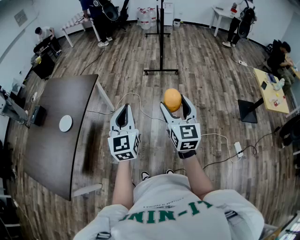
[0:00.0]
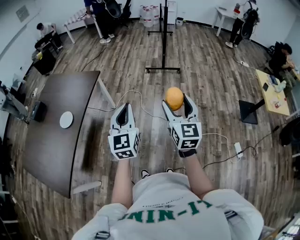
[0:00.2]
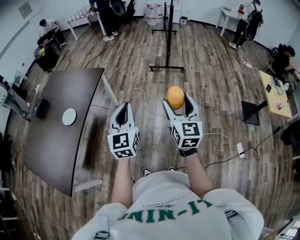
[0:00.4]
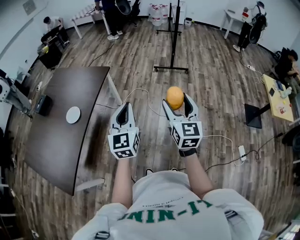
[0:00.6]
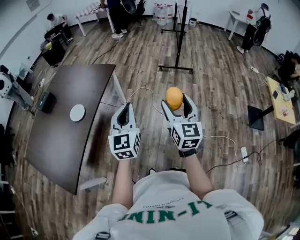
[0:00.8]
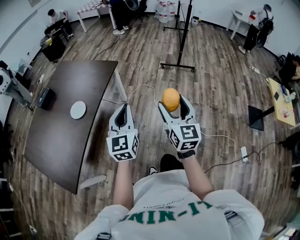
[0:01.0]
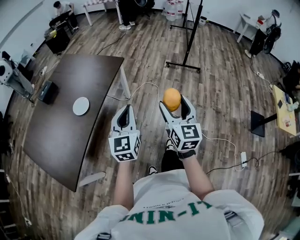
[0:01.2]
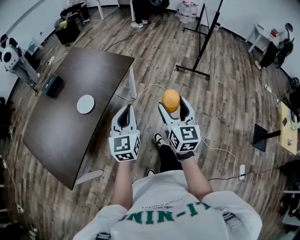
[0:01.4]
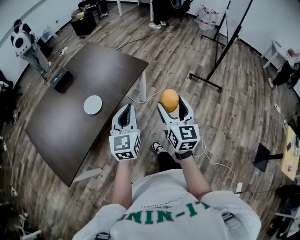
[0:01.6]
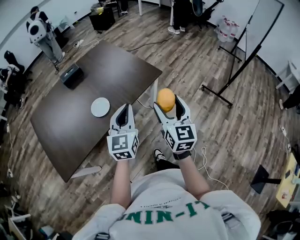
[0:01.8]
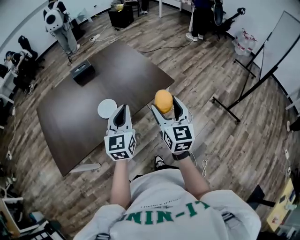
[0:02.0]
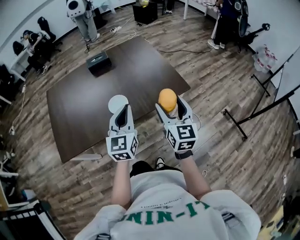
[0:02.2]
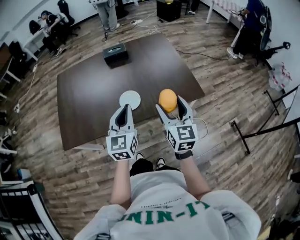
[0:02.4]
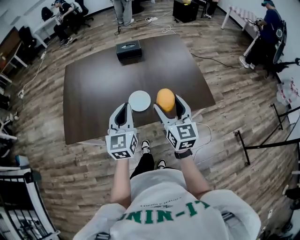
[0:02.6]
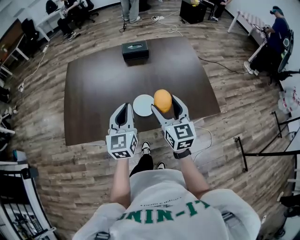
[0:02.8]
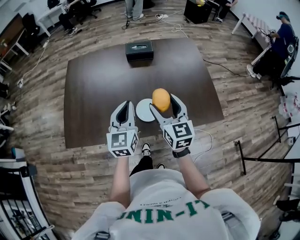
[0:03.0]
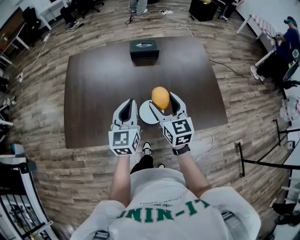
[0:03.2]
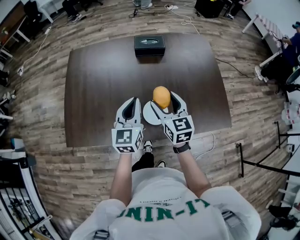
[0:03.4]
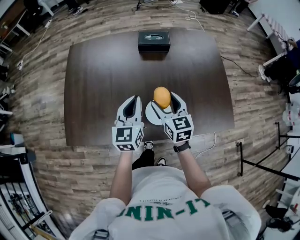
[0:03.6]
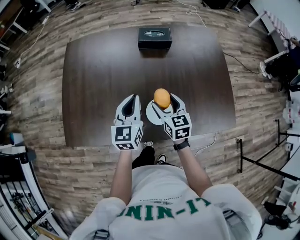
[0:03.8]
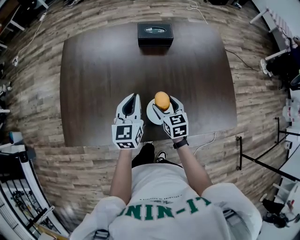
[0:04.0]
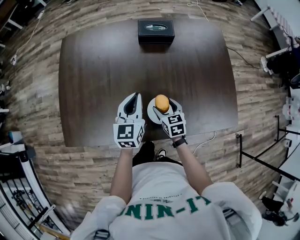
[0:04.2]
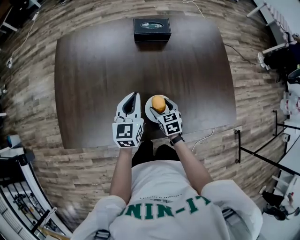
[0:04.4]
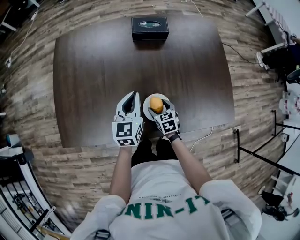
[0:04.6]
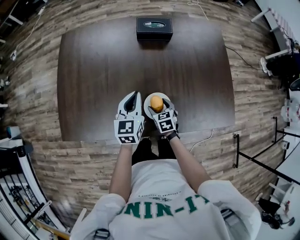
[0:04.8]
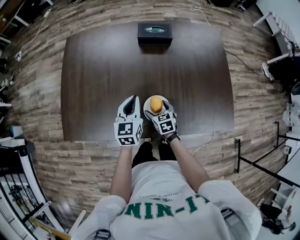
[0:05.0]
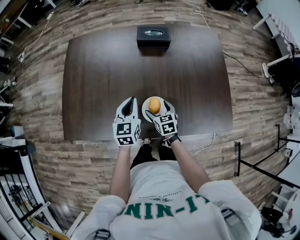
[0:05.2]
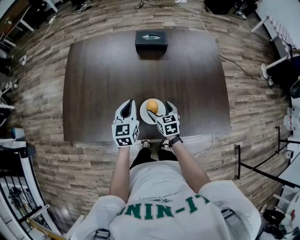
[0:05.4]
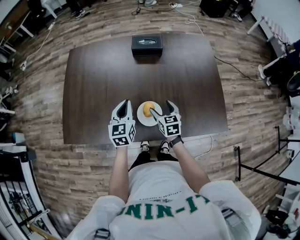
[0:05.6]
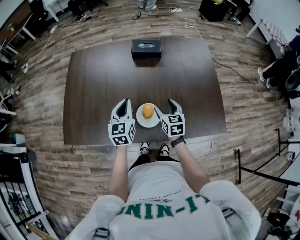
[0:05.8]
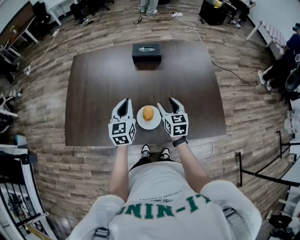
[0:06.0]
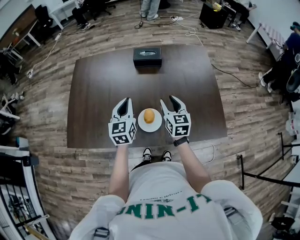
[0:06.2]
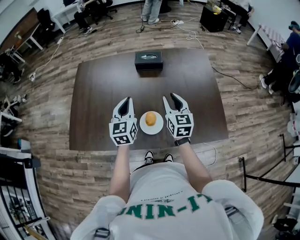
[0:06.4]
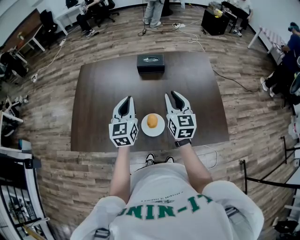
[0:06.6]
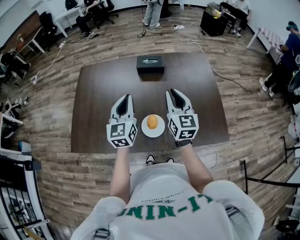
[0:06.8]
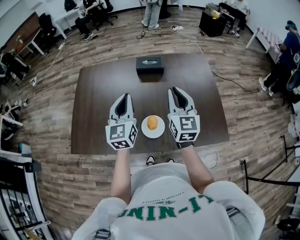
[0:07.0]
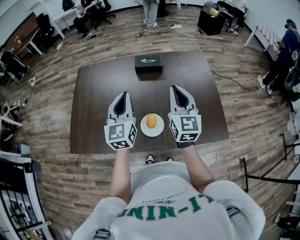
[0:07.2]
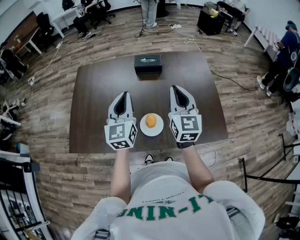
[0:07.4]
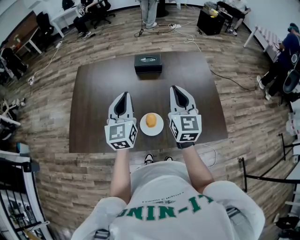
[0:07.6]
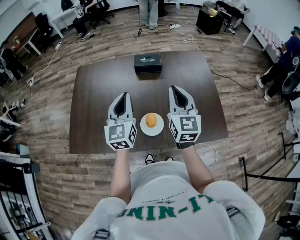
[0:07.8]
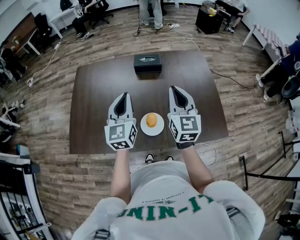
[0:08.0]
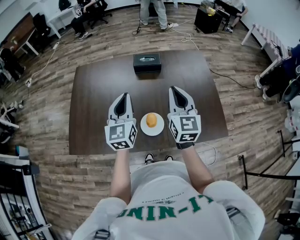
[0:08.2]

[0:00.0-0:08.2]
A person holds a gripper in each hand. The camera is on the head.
0:00.0 to 0:01.6: Both grippers travel together to the left and forward, about 35 cm. The left gripper changes its angle by about 20 degrees. Meanwhile the right gripper turns by about 30 degrees.
0:01.6 to 0:03.2: Both grippers are carried about 50 cm. The right gripper changes its angle by about 60 degrees; the left gripper turns by roughly 50 degrees.
0:03.2 to 0:05.0: The right gripper heads downward, covering approximately 30 cm, and angles its fingers downward, by about 30 degrees, while the left gripper travels downward and forward by some 15 cm.
0:05.0 to 0:06.6: The left gripper heads upward, covering about 15 cm; the right gripper heads upward, covering approximately 30 cm, points its fingers some 40 degrees further upward, and closes its fingers.
0:06.6 to 0:08.2: The right gripper is displaced upward by about 5 cm.

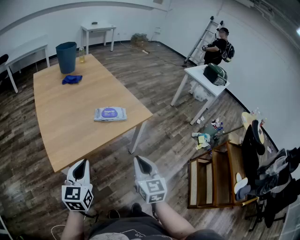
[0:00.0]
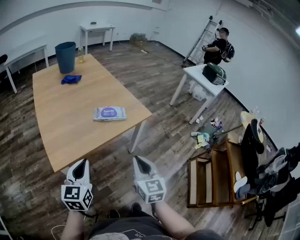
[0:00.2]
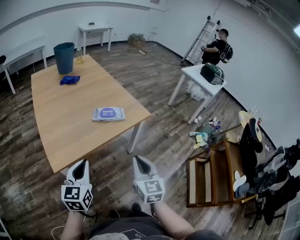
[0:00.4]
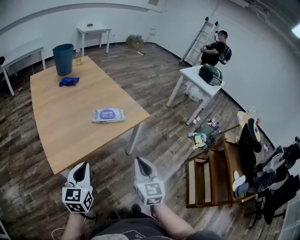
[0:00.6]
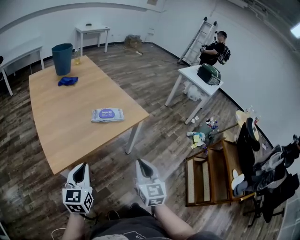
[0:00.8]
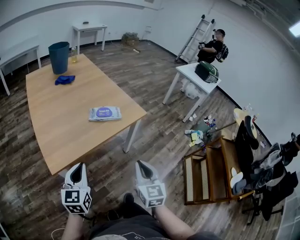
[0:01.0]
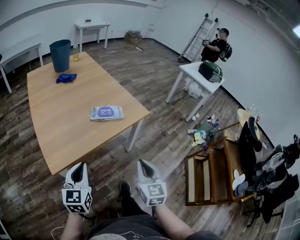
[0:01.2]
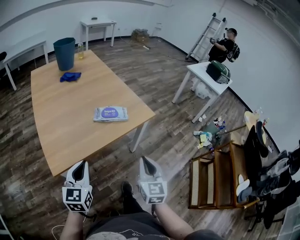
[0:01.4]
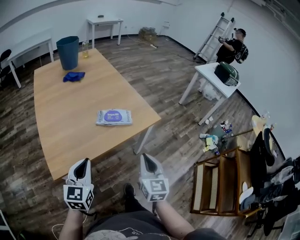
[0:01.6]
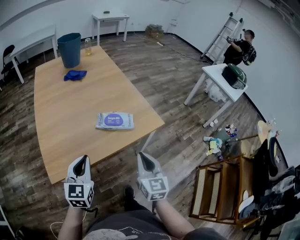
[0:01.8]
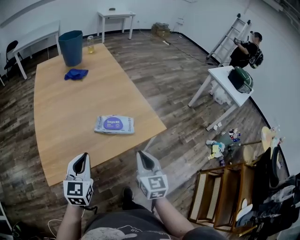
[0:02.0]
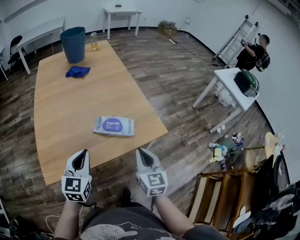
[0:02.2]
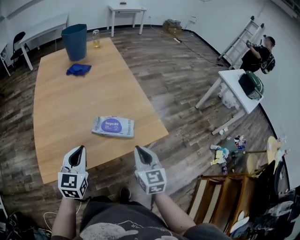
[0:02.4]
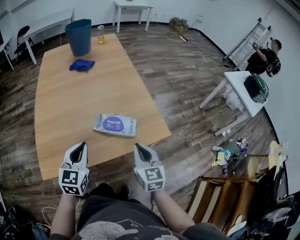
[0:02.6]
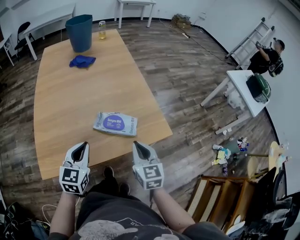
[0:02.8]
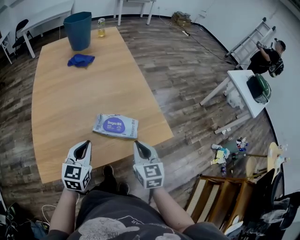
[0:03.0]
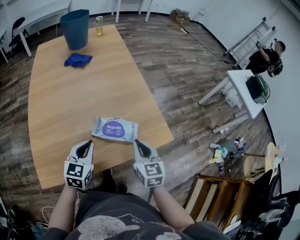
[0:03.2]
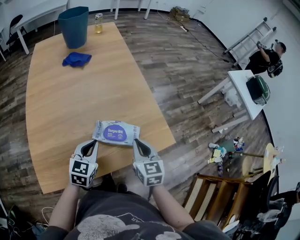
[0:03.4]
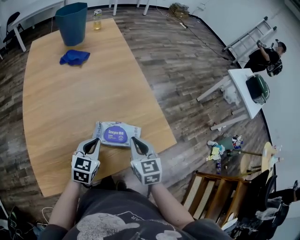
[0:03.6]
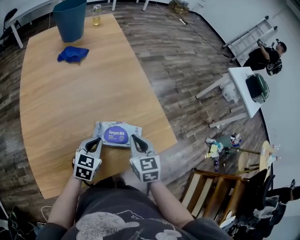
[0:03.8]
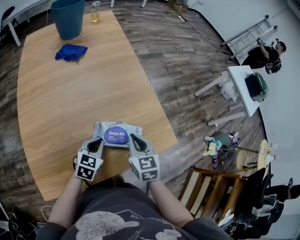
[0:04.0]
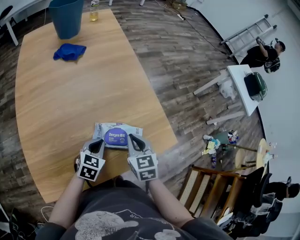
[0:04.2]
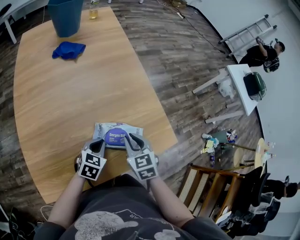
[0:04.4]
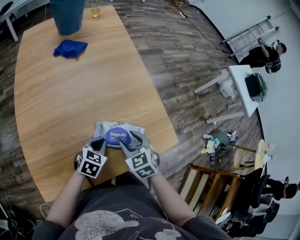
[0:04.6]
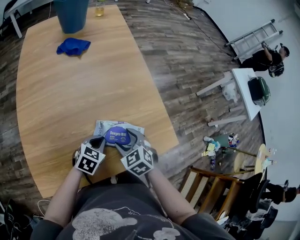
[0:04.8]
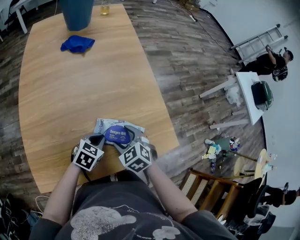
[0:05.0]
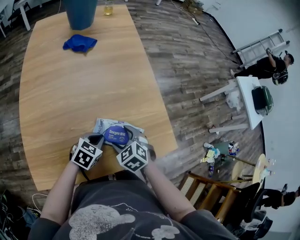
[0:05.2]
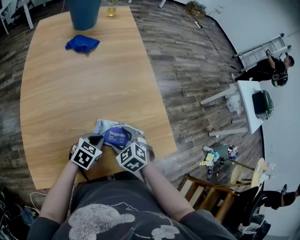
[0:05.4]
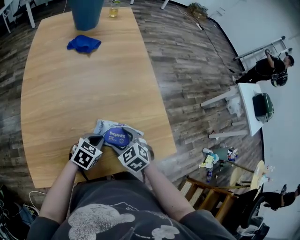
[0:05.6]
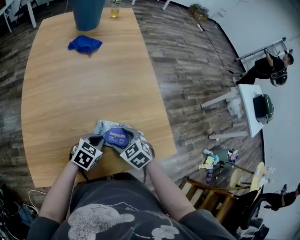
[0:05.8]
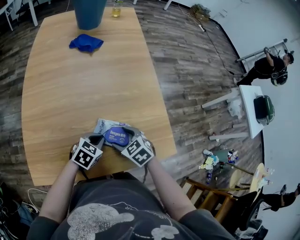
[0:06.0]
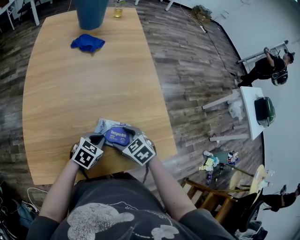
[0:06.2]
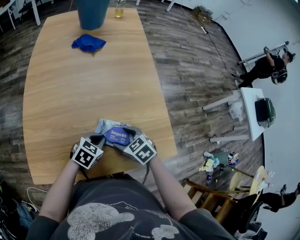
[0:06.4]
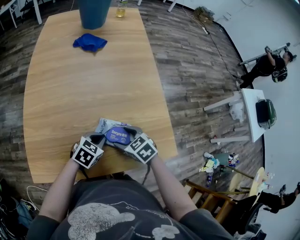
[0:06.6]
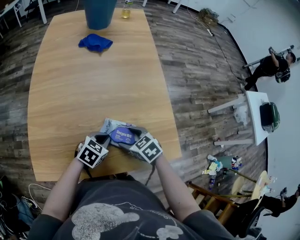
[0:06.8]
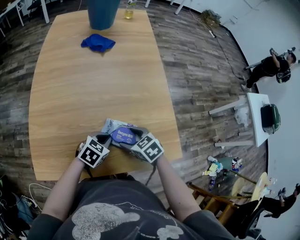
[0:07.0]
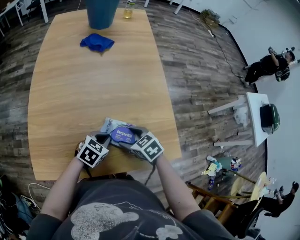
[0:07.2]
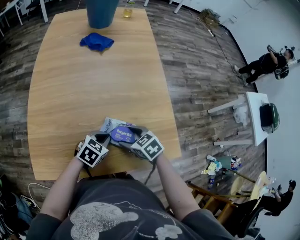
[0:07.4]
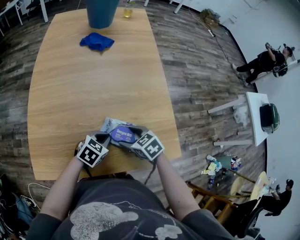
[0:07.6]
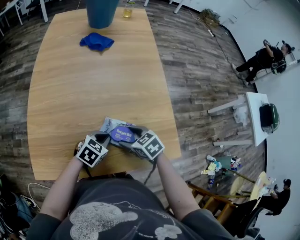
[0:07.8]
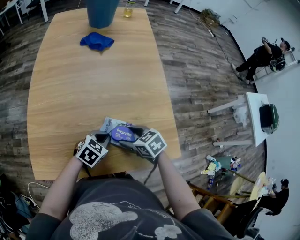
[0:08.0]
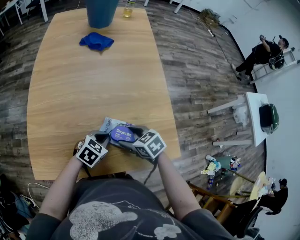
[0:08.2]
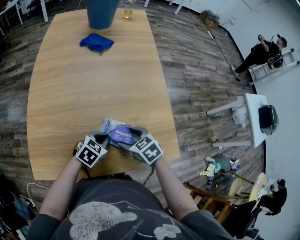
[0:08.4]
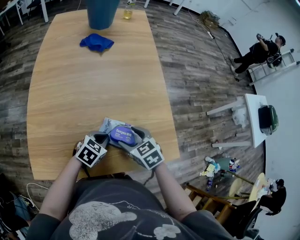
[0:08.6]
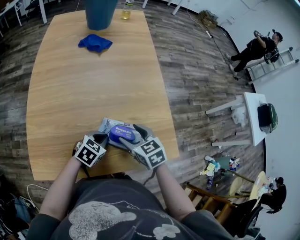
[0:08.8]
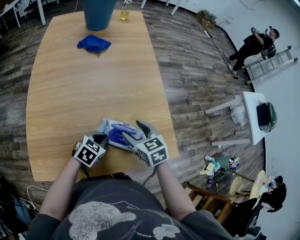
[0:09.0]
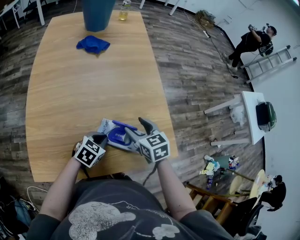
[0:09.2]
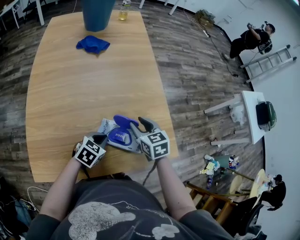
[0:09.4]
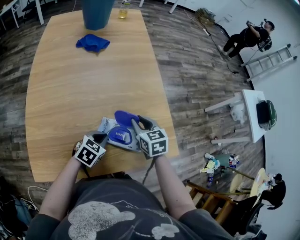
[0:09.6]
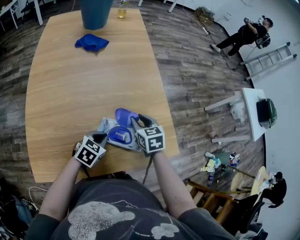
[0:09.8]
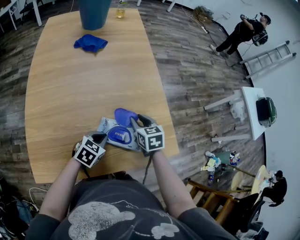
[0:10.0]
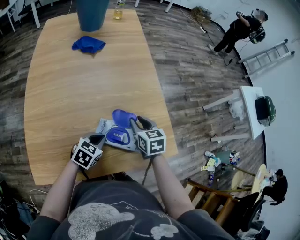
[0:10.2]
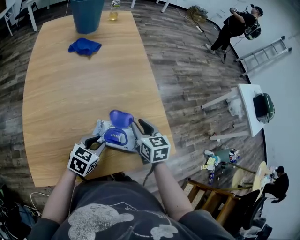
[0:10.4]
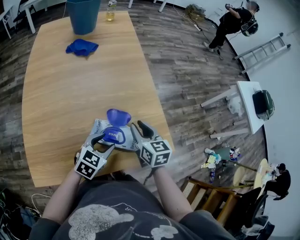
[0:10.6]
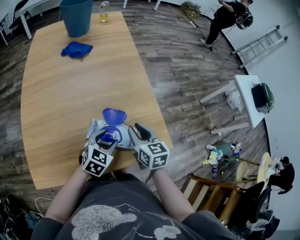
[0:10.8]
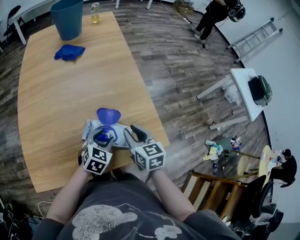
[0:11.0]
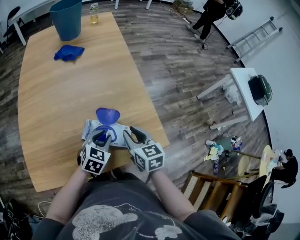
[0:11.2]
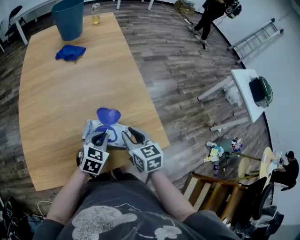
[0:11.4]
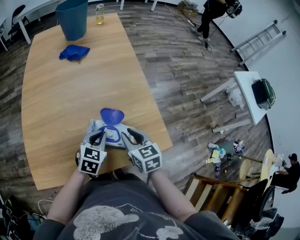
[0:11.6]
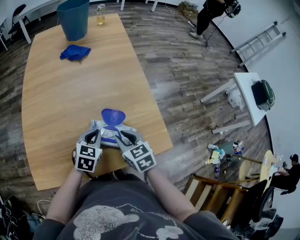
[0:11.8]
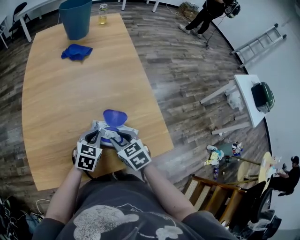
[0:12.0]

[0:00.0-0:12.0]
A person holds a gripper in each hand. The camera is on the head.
0:00.0 to 0:01.6: Both grippers move forward, approximately 10 cm.
0:01.6 to 0:03.0: Both grippers move forward, some 20 cm. The right gripper swivels about 20 degrees.
0:03.0 to 0:04.4: The left gripper is displaced downward and forward by some 15 cm, and swivels about 30 degrees, while the right gripper shifts roughly 10 cm forward, to the left and downward, and turns by some 20 degrees.
0:04.4 to 0:06.0: The right gripper goes some 5 cm downward, turns by some 40 degrees, and opens.
0:06.0 to 0:07.6: The grippers make only small movements.
0:07.6 to 0:09.0: The right gripper moves upward, some 5 cm, and changes its angle by some 20 degrees.
0:09.0 to 0:10.4: The left gripper opens; the right gripper moves to the right, approximately 5 cm, changes its angle by approximately 20 degrees, and closes its fingers.
0:10.4 to 0:12.0: The left gripper closes, while the right gripper heads to the left and backward, covering about 10 cm, and swivels roughly 20 degrees.

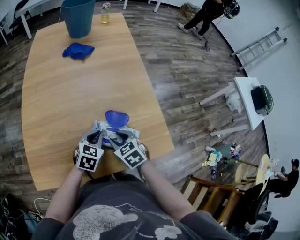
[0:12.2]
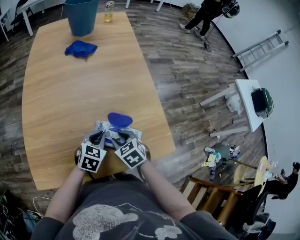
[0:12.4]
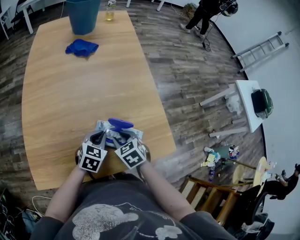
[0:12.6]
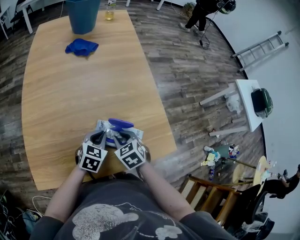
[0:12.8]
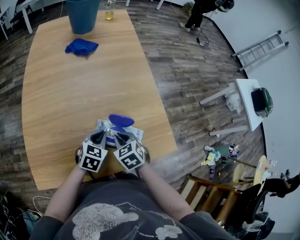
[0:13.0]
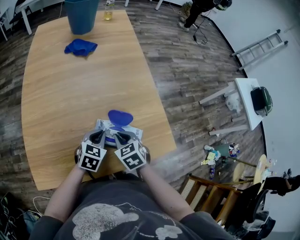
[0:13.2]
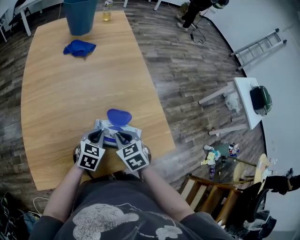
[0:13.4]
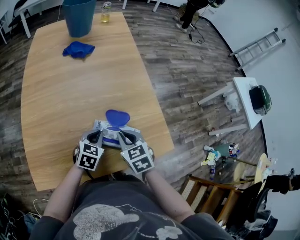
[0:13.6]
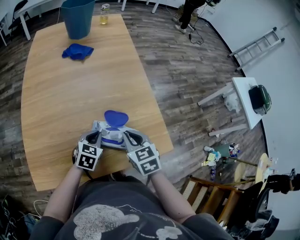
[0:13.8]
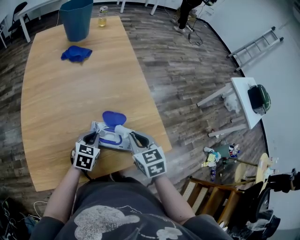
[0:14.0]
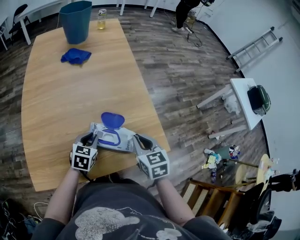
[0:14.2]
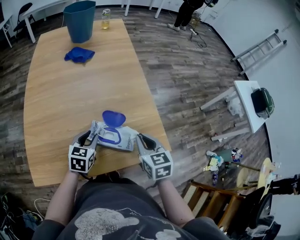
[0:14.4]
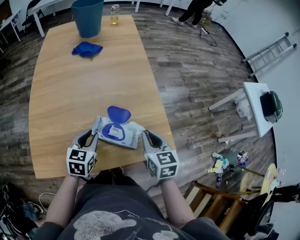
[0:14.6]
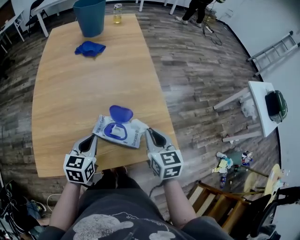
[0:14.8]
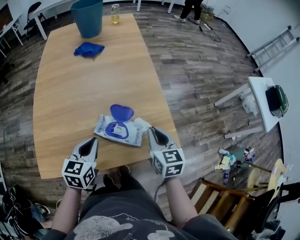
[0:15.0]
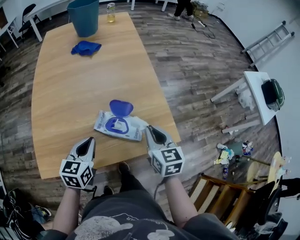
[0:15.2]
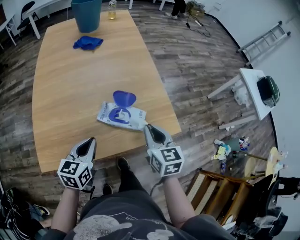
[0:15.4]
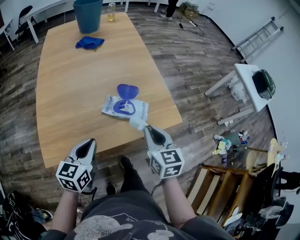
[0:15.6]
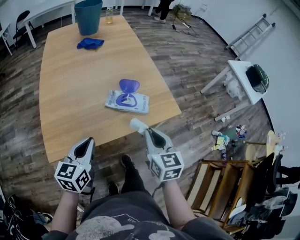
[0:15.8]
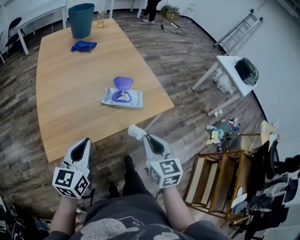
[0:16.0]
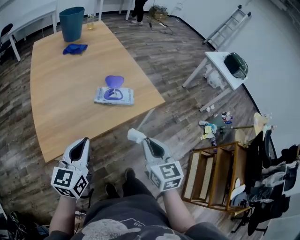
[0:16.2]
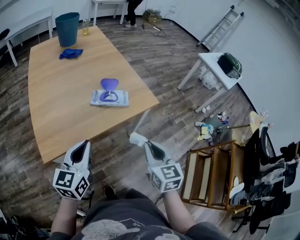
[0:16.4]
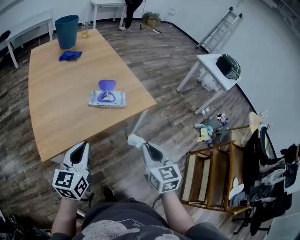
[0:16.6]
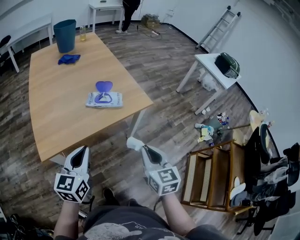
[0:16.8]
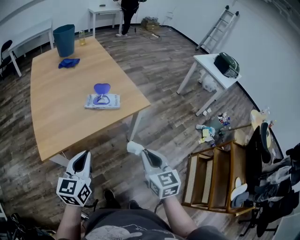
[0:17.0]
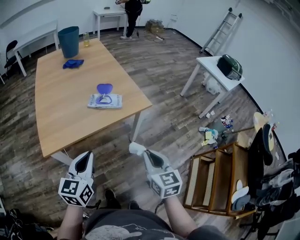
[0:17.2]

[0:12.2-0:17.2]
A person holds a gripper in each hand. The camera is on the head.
0:12.2 to 0:13.8: The right gripper heads upward, covering about 5 cm, and closes.
0:13.8 to 0:15.6: The right gripper goes some 15 cm backward and upward, and changes its angle by some 20 degrees, while the left gripper goes about 20 cm backward, upward and to the left, changes its angle by roughly 30 degrees, and opens and closes again.
0:15.6 to 0:17.2: The right gripper is displaced backward and to the right by approximately 25 cm, while the left gripper goes approximately 20 cm backward, to the right and upward.
